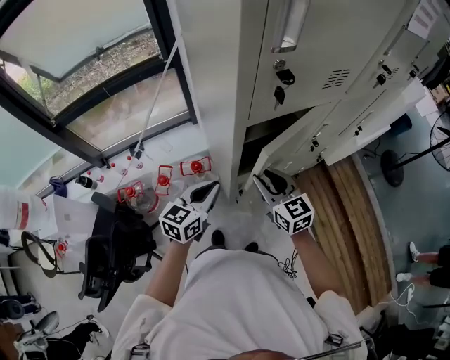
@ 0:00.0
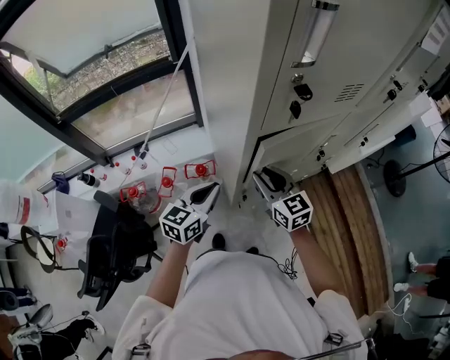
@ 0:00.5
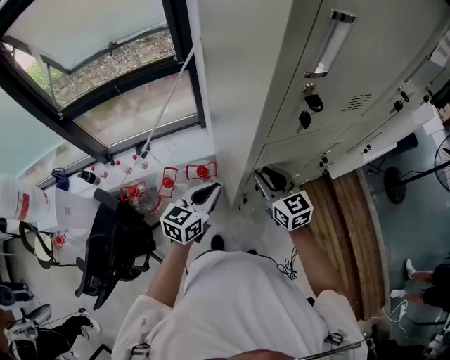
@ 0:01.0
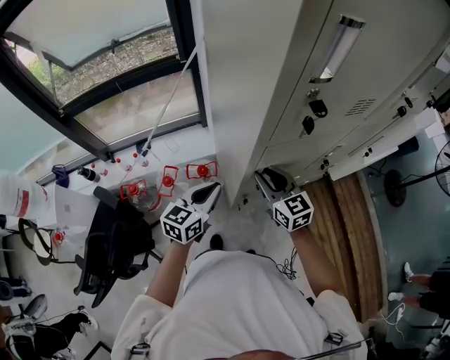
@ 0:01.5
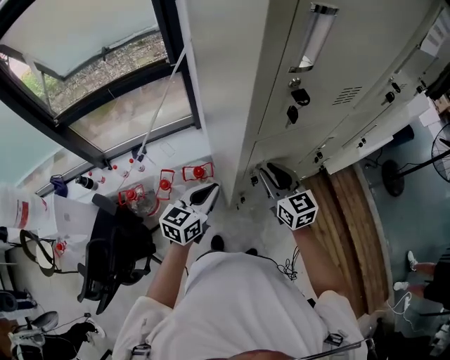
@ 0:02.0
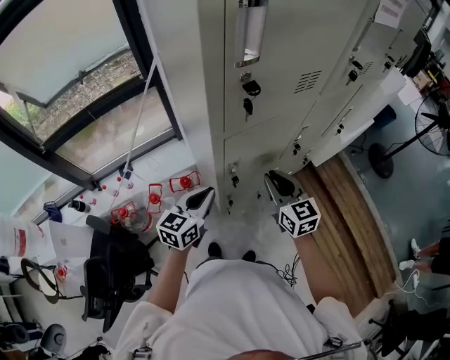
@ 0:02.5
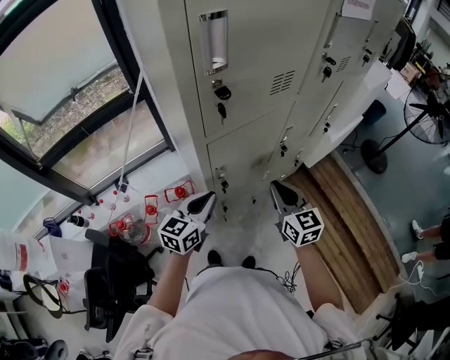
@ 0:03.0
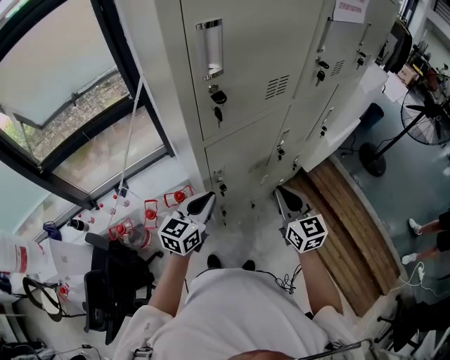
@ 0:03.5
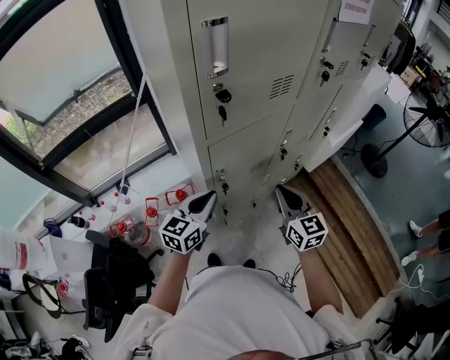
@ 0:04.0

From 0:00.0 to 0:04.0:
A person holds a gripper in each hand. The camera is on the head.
From 0:00.0 to 0:02.0: The right gripper travels forward by some 5 cm.
From 0:02.0 to 0:04.0: The right gripper is displaced to the right and backward by roughly 15 cm, and closes its fingers, while the left gripper goes roughly 10 cm to the right.

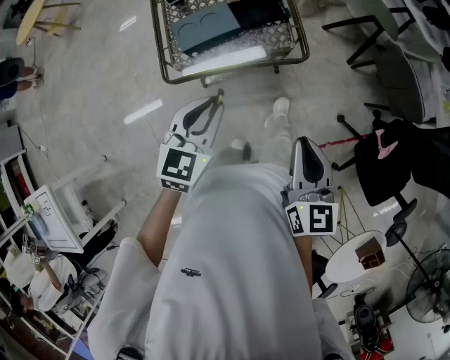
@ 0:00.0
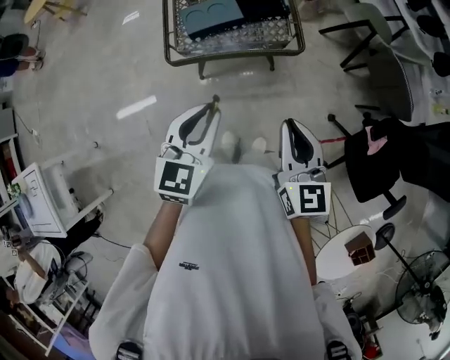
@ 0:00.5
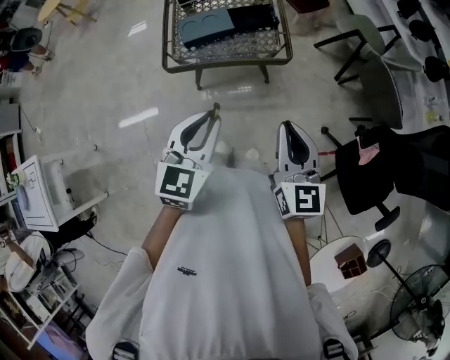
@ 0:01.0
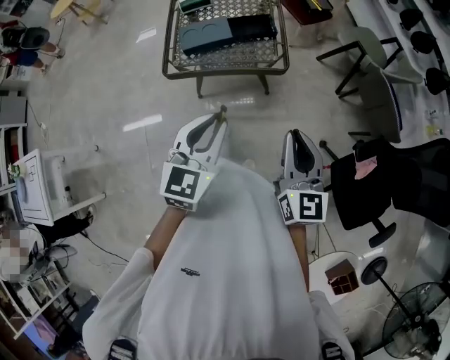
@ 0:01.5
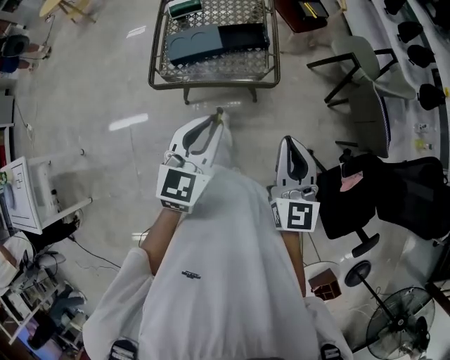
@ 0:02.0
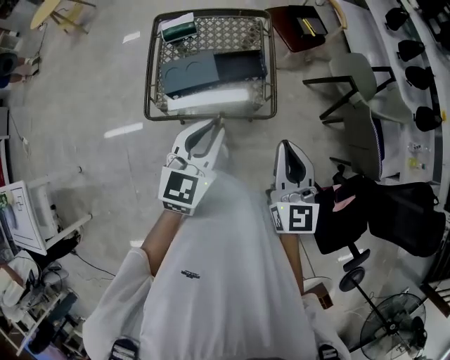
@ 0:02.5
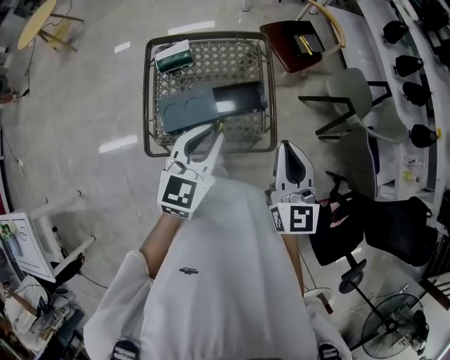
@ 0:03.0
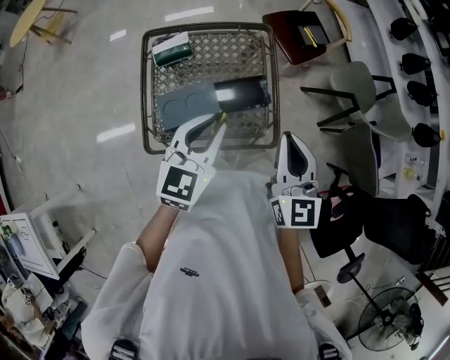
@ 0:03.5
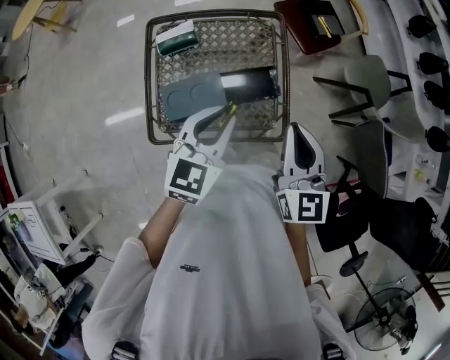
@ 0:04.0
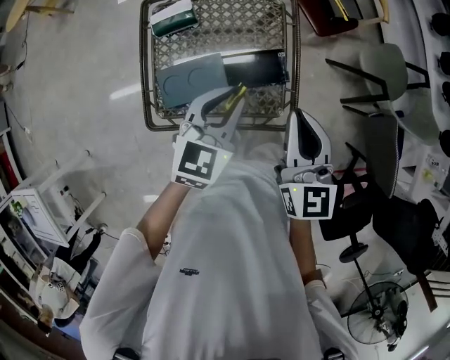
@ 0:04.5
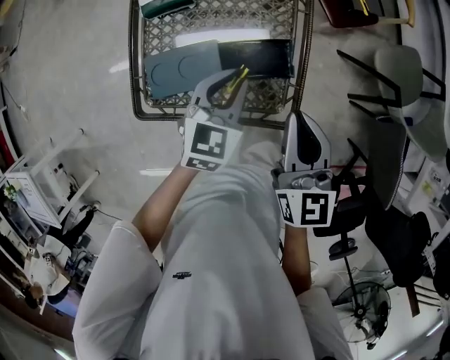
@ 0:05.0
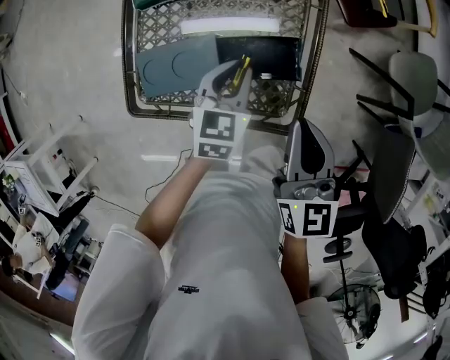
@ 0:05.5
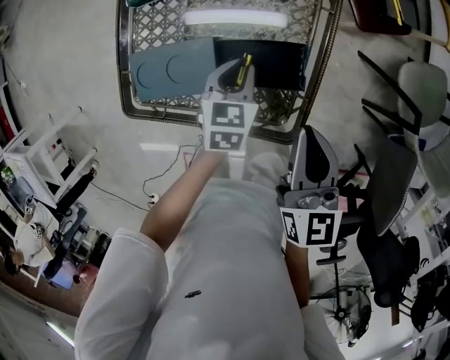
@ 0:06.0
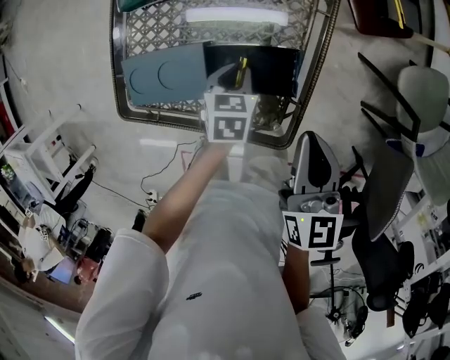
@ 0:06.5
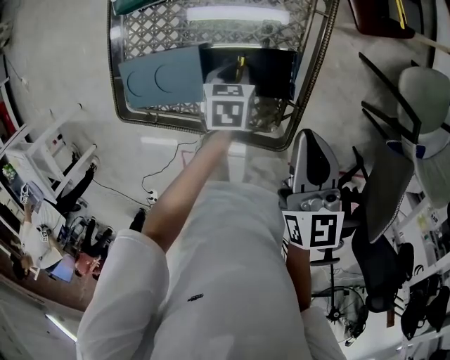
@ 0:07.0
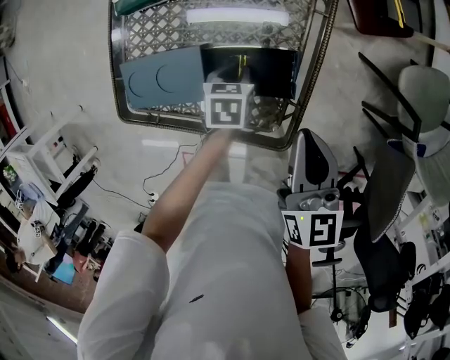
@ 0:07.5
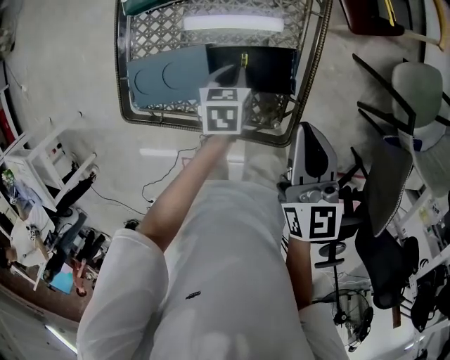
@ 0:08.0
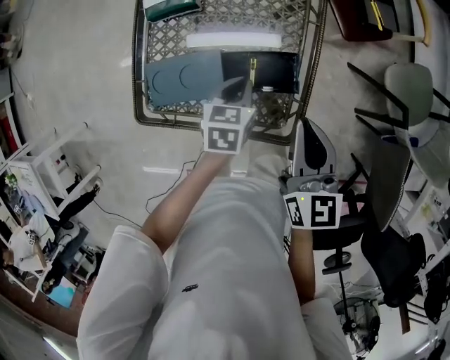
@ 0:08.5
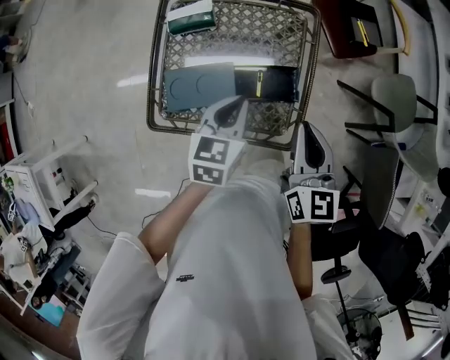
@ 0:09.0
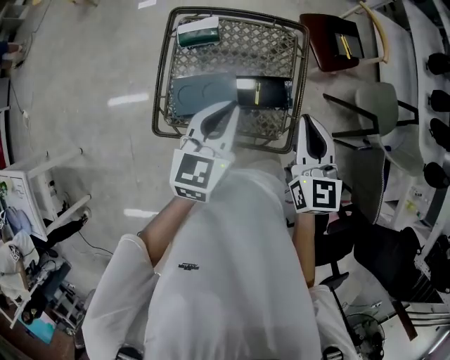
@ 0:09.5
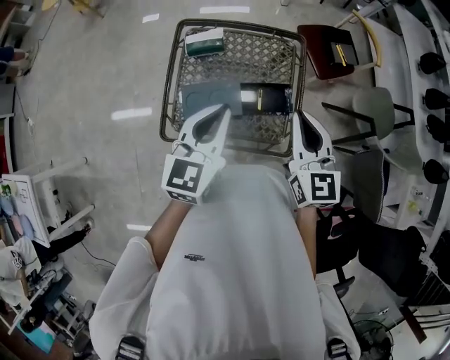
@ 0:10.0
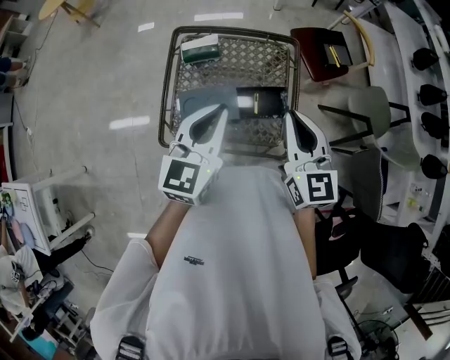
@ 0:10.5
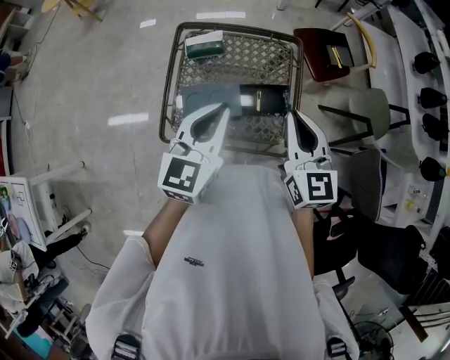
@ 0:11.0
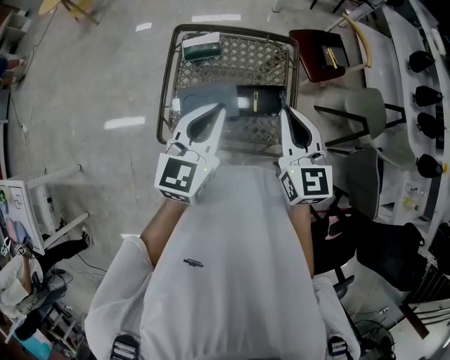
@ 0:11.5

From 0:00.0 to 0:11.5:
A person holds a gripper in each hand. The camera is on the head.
From 0:00.0 to 0:02.0: The left gripper moves to the right, upward and backward, some 15 cm; the right gripper shifts roughly 10 cm to the right and upward.
From 0:02.0 to 0:04.0: Both grippers move forward, roughly 35 cm.
From 0:04.0 to 0:06.0: The right gripper moves downward and forward, approximately 20 cm, and turns by some 20 degrees, while the left gripper is displaced downward by approximately 30 cm, and rotates approximately 40 degrees.
From 0:06.0 to 0:07.5: The left gripper heads downward, covering roughly 10 cm, and rotates approximately 20 degrees.
From 0:07.5 to 0:09.5: The right gripper is displaced upward and to the left by roughly 20 cm, and rotates approximately 20 degrees. Meanwhile the left gripper heads upward, covering roughly 40 cm, and points its fingers some 40 degrees further upward.
From 0:09.5 to 0:11.5: The right gripper moves to the left, about 5 cm. Meanwhile the left gripper goes about 5 cm upward.

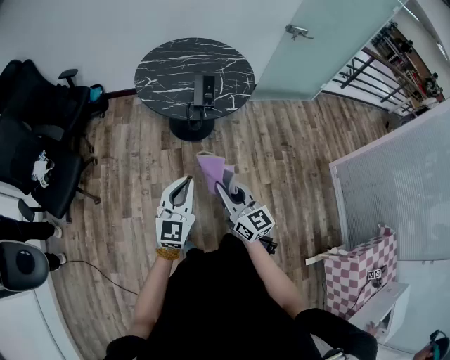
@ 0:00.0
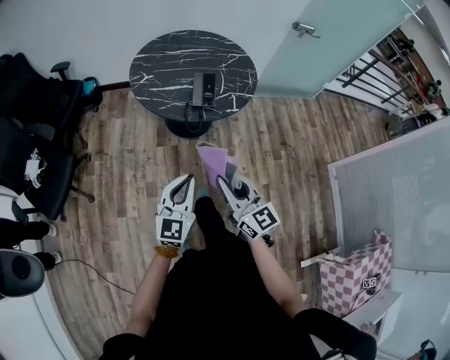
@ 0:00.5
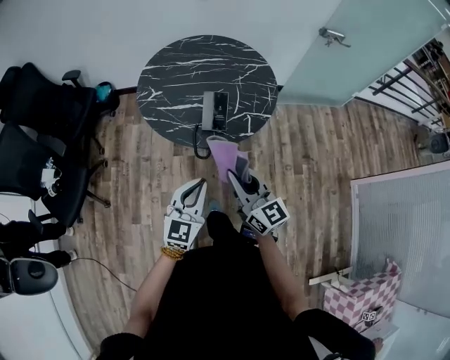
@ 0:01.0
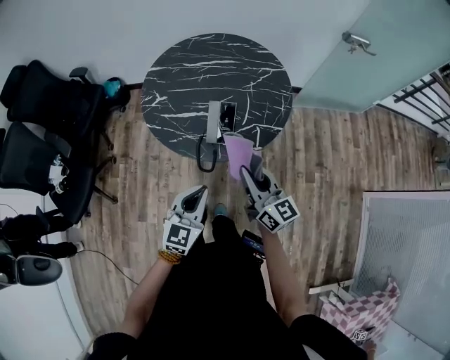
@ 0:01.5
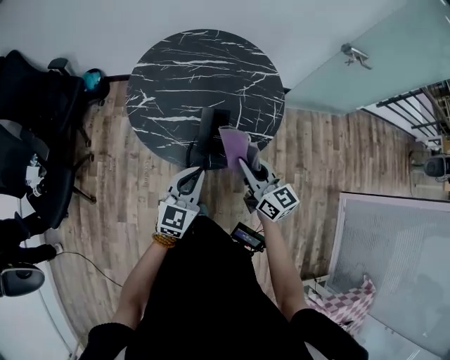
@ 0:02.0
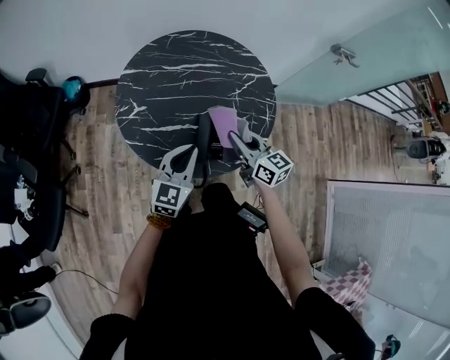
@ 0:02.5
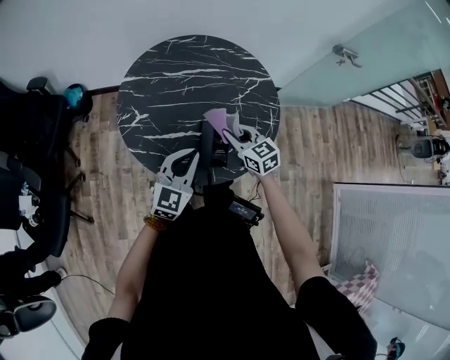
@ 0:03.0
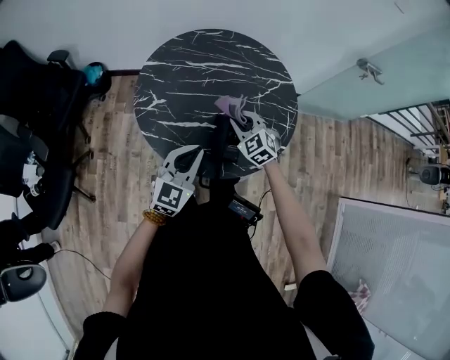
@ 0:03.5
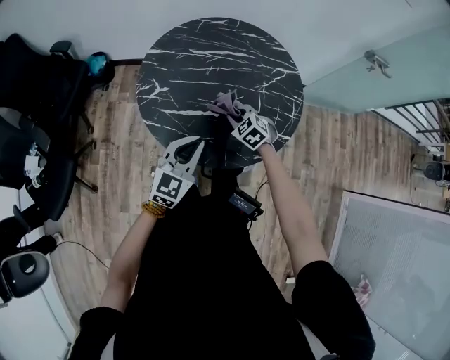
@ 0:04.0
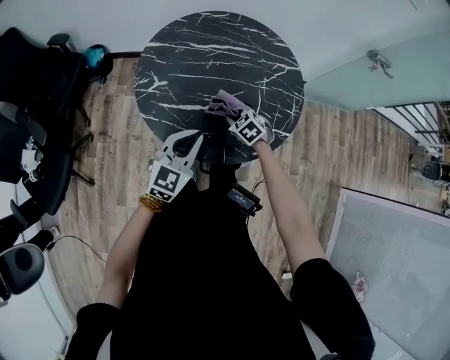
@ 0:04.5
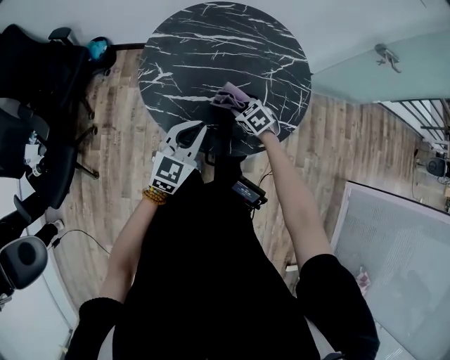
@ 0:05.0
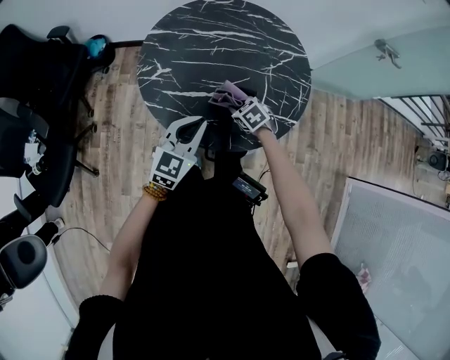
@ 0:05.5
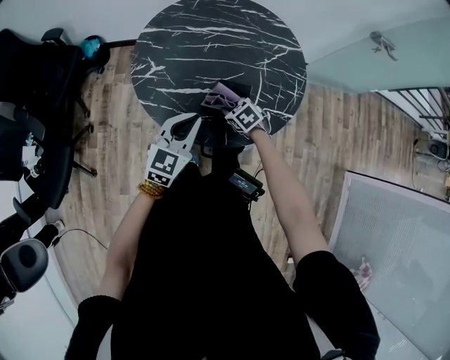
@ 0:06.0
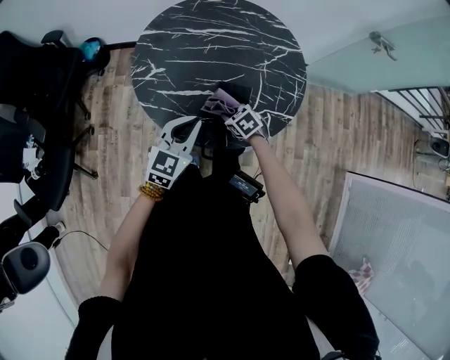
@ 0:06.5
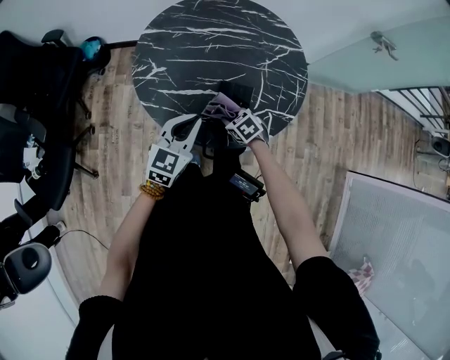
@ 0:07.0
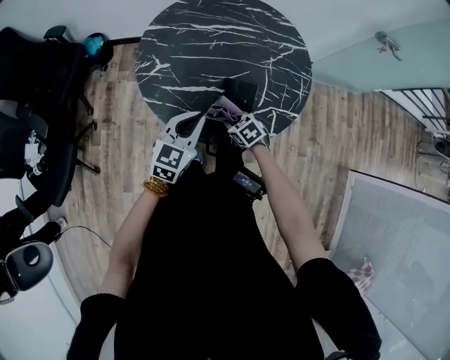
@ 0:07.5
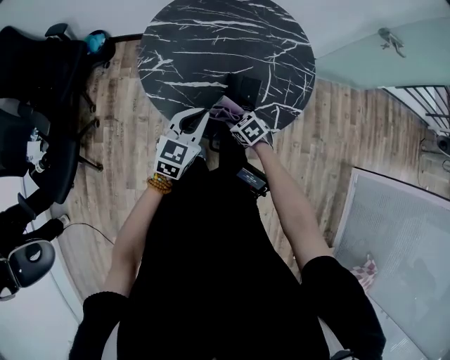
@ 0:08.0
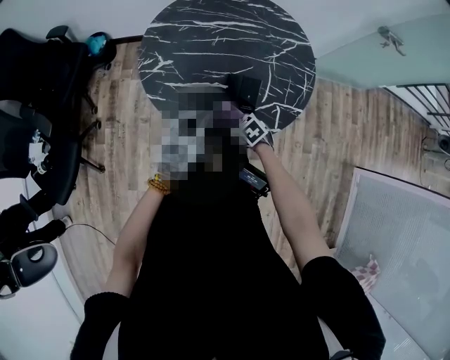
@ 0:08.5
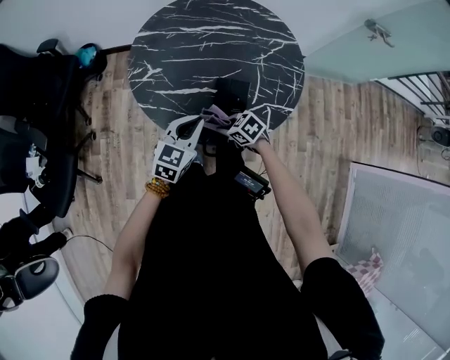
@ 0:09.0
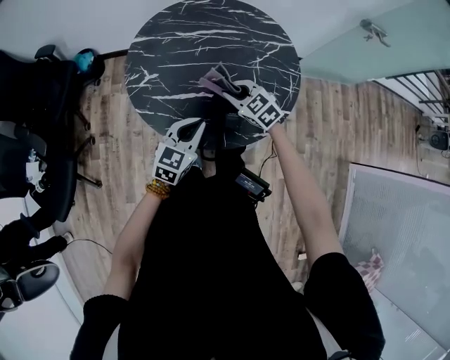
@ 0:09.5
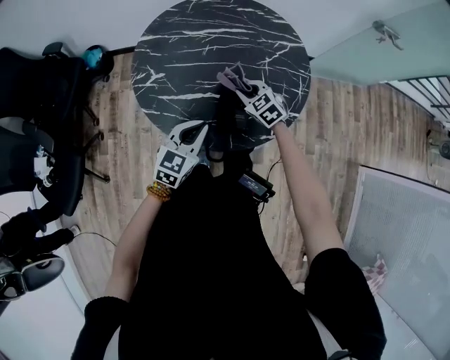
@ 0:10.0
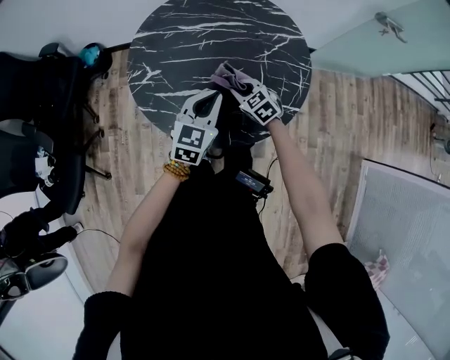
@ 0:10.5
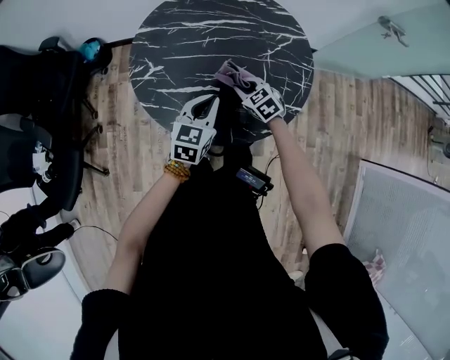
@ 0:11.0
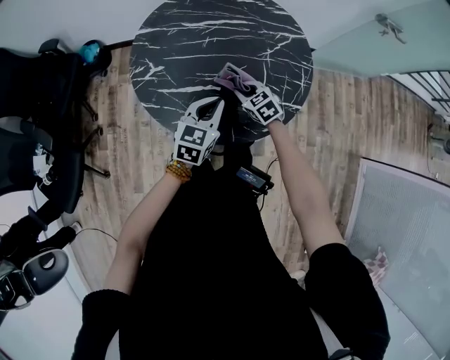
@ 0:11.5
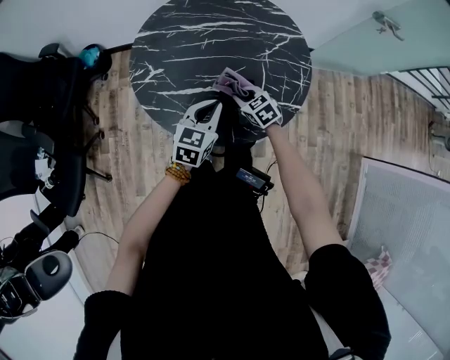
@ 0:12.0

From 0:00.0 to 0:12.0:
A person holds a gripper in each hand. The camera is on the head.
From 0:00.0 to 0:02.0: Both grippers are carried forward, some 40 cm.
From 0:02.0 to 0:04.0: The left gripper goes roughly 10 cm forward and to the left. The right gripper is displaced downward, forward and to the left by about 30 cm, and tips its fingers downward by roughly 50 degrees.
From 0:04.0 to 0:06.0: The right gripper travels downward by about 5 cm, and turns by some 20 degrees.
From 0:06.0 to 0:08.0: The right gripper heads backward, covering approximately 5 cm.
From 0:08.0 to 0:10.0: The right gripper travels forward, upward and to the right by roughly 15 cm, and changes its angle by approximately 20 degrees.
From 0:10.0 to 0:12.0: The right gripper moves approximately 5 cm.
